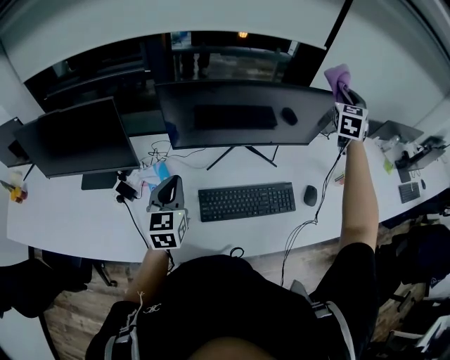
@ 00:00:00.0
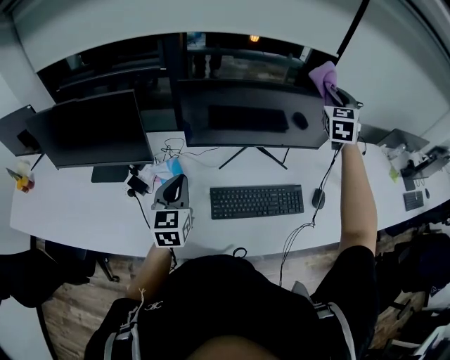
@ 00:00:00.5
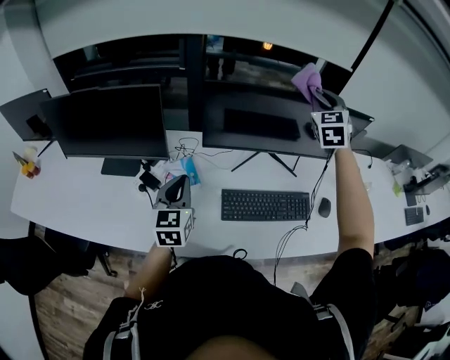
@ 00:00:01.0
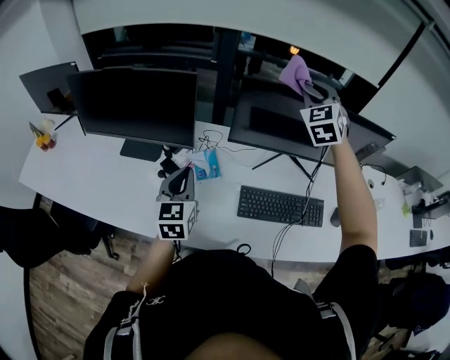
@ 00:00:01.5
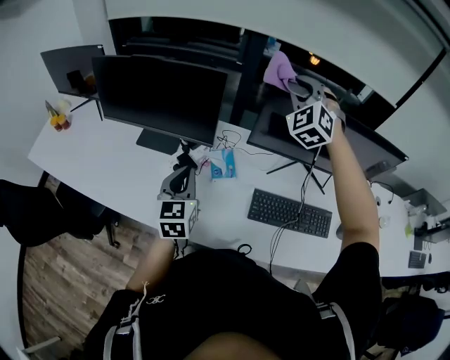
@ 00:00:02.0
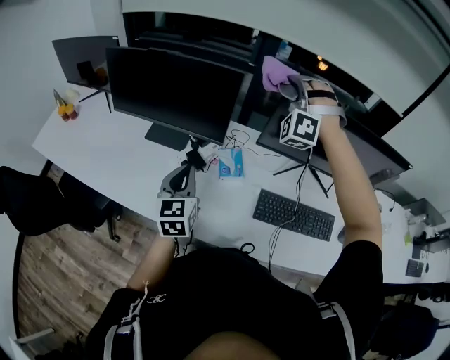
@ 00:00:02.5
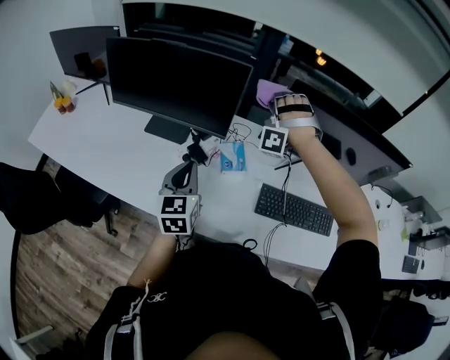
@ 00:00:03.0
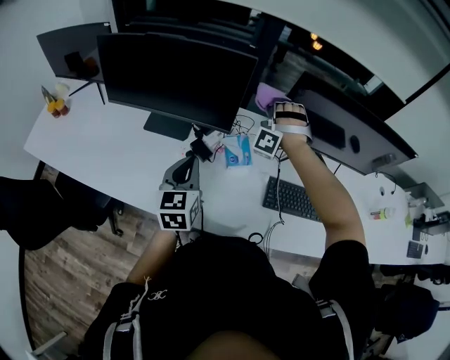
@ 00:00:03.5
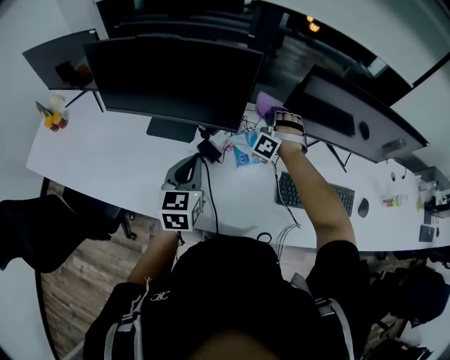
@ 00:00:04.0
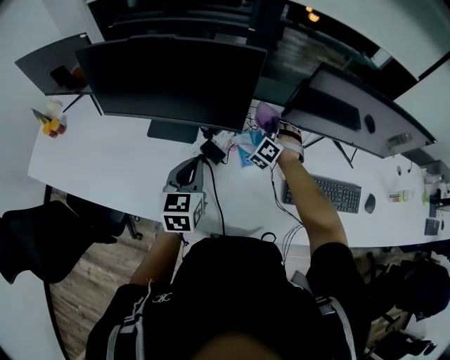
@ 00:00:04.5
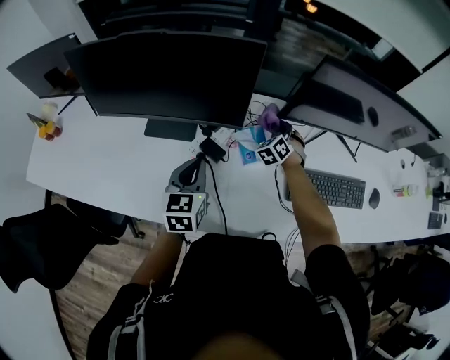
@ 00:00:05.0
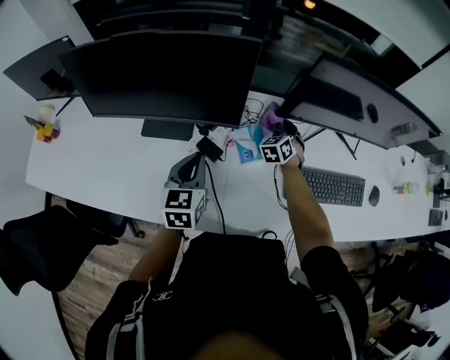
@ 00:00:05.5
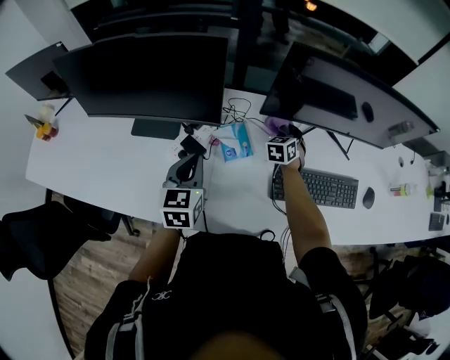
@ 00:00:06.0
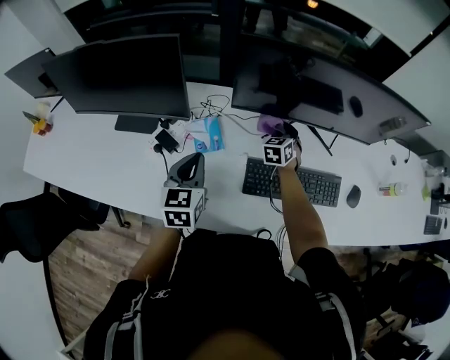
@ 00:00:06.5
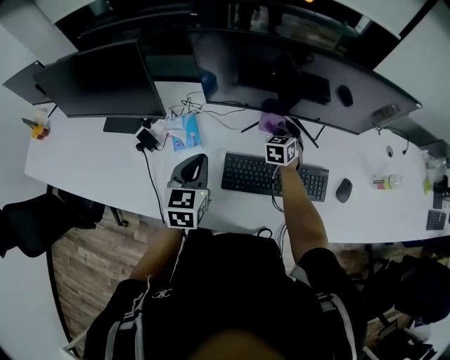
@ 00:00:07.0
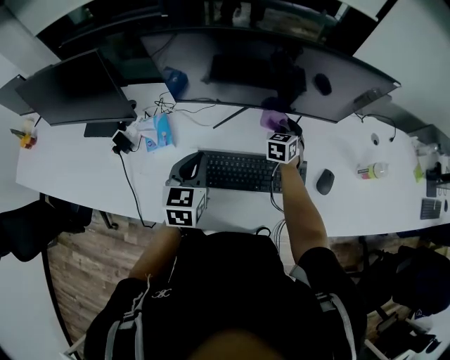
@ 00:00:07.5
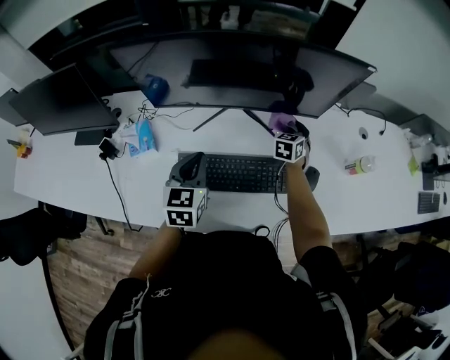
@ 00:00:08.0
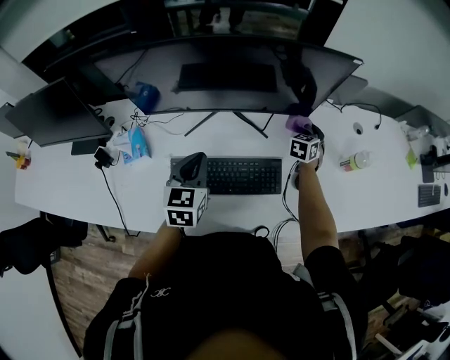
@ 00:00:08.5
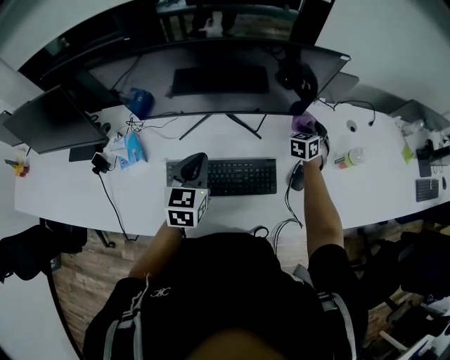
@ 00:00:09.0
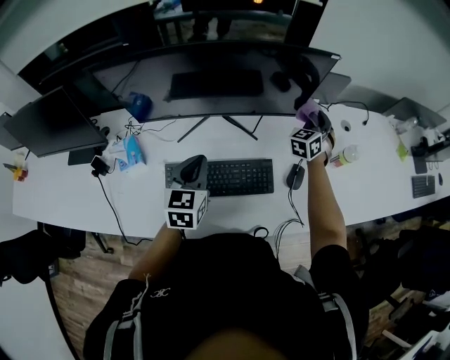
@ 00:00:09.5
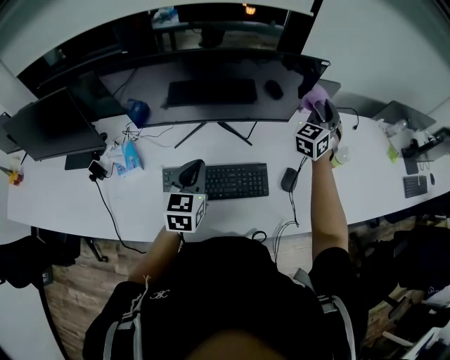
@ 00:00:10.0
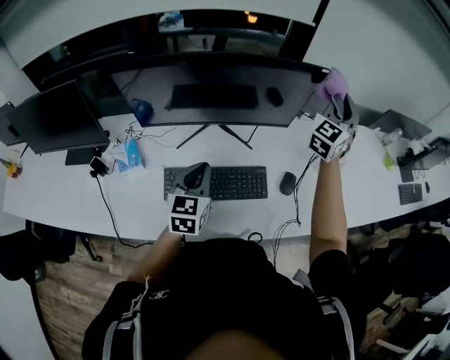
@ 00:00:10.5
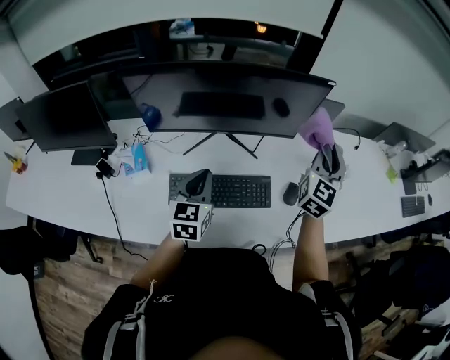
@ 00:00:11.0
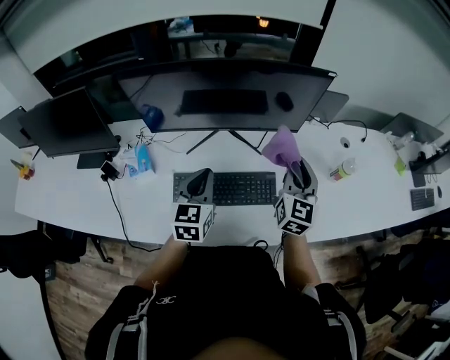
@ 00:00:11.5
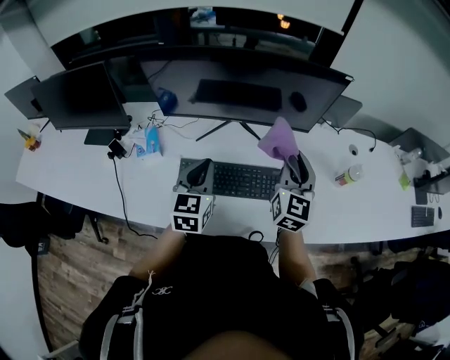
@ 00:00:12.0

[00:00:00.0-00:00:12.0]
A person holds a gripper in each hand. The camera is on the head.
00:00:00.0 to 00:00:02.0: The left gripper shifts by roughly 20 cm, while the right gripper changes place by roughly 50 cm, and changes its angle by about 60 degrees.
00:00:02.0 to 00:00:04.0: The right gripper travels downward by about 30 cm, and swivels about 40 degrees, while the left gripper goes roughly 10 cm to the left.
00:00:04.0 to 00:00:06.0: The left gripper travels to the right and forward by some 10 cm; the right gripper heads to the right and downward, covering about 20 cm, and rotates around the line of its fingers by roughly 70 degrees, clockwise from behind.
00:00:06.0 to 00:00:08.0: The two grippers travel together, to the right, about 40 cm.
00:00:08.0 to 00:00:10.0: The right gripper heads upward and to the right, covering some 30 cm, and tilts its fingers about 30 degrees upward; the left gripper heads to the right, covering approximately 5 cm.
00:00:10.0 to 00:00:12.0: The left gripper changes place by roughly 5 cm; the right gripper moves backward and to the left, roughly 25 cm, and turns by about 40 degrees.

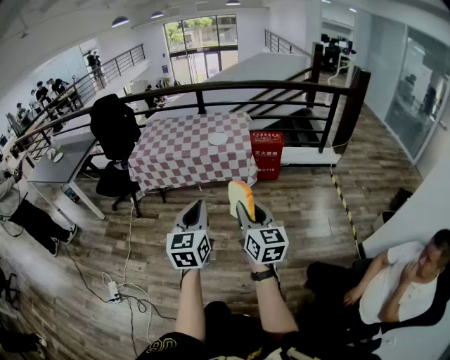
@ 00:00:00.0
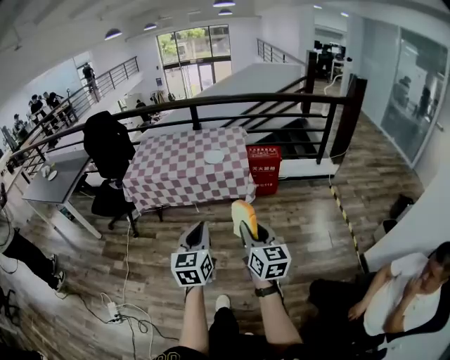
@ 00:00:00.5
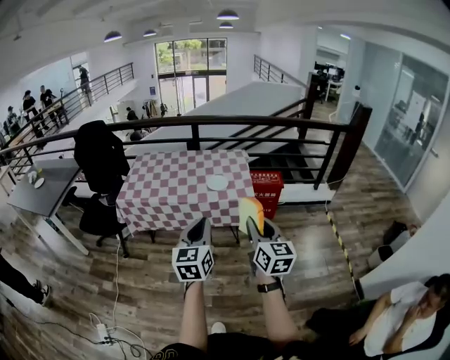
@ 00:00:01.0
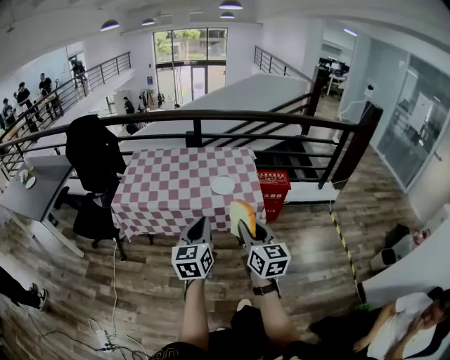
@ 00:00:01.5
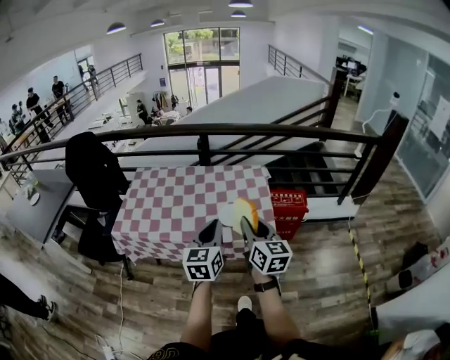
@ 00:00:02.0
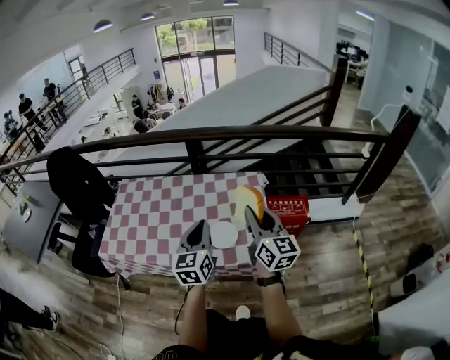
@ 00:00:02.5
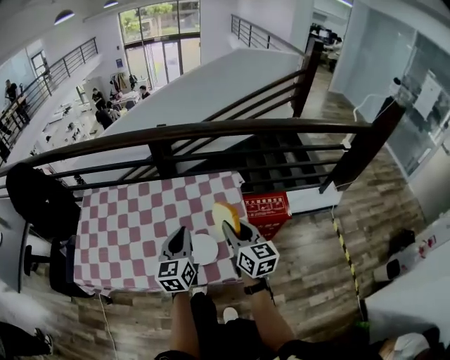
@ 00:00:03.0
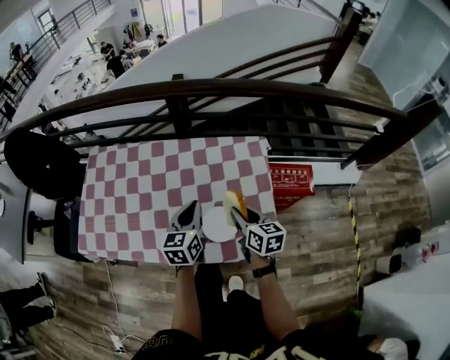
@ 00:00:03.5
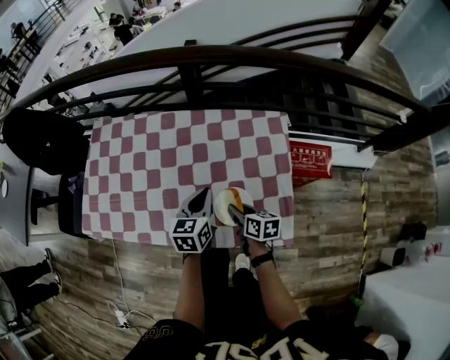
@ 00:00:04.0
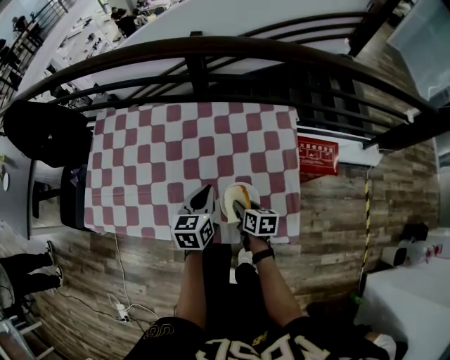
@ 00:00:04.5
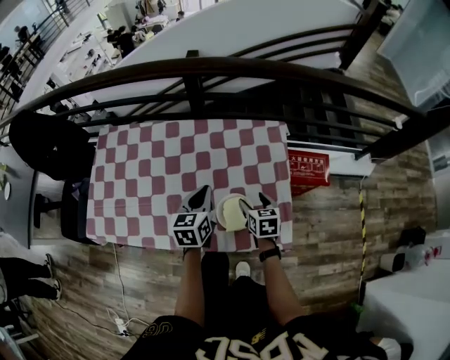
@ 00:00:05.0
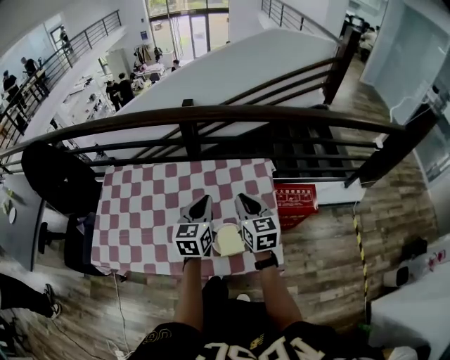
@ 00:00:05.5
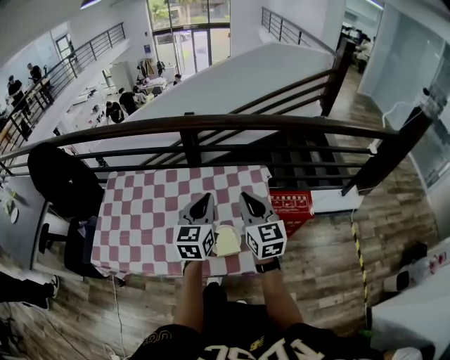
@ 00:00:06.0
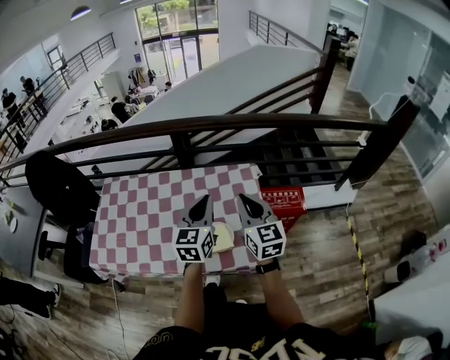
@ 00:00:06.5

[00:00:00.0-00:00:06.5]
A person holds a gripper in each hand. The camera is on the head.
00:00:00.0 to 00:00:02.0: The two grippers travel together, forward, approximately 60 cm.
00:00:02.0 to 00:00:04.5: The right gripper heads downward and forward, covering approximately 50 cm, and points its fingers about 40 degrees further downward. The left gripper shifts roughly 40 cm forward and downward, and changes its angle by roughly 30 degrees.
00:00:04.5 to 00:00:06.5: The right gripper is displaced upward by some 35 cm, points its fingers some 40 degrees further upward, and opens, then closes again. Meanwhile the left gripper shifts approximately 25 cm upward and to the right, and changes its angle by about 30 degrees.

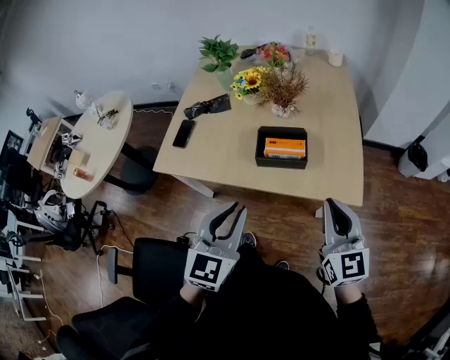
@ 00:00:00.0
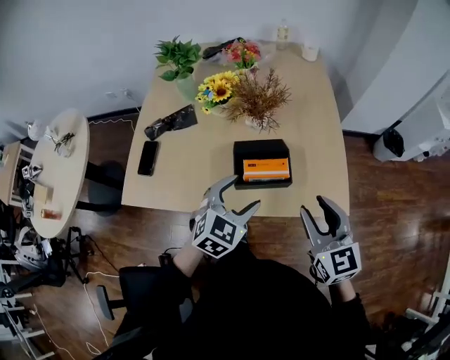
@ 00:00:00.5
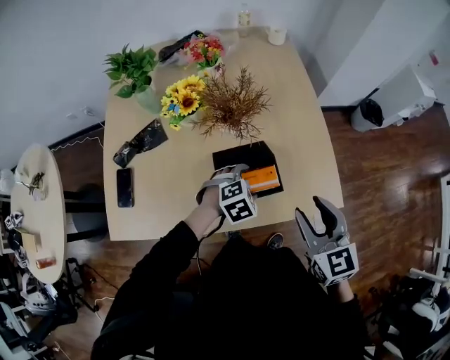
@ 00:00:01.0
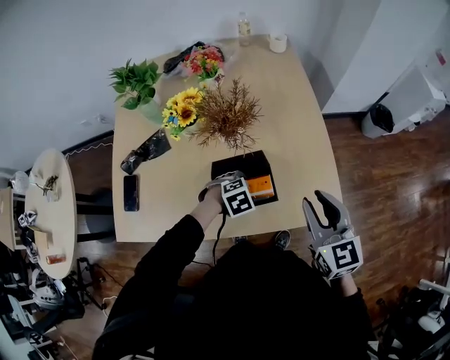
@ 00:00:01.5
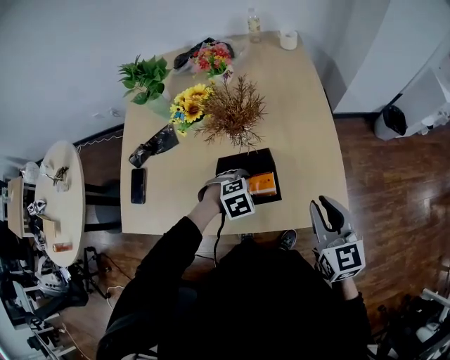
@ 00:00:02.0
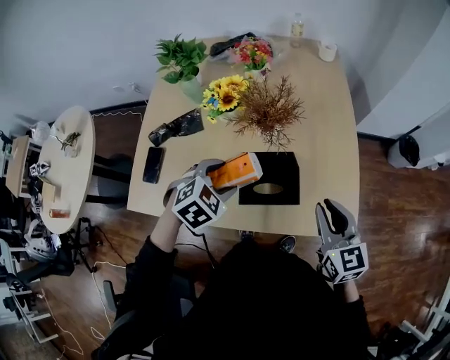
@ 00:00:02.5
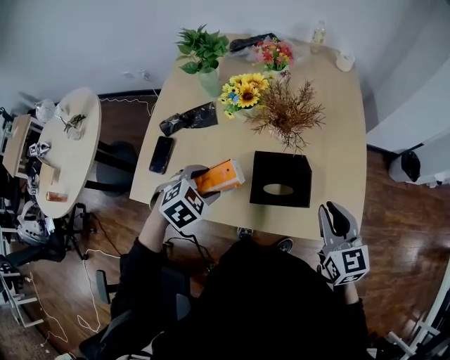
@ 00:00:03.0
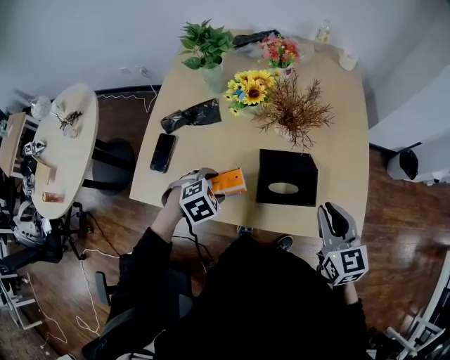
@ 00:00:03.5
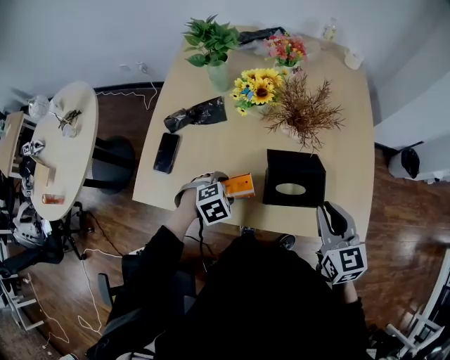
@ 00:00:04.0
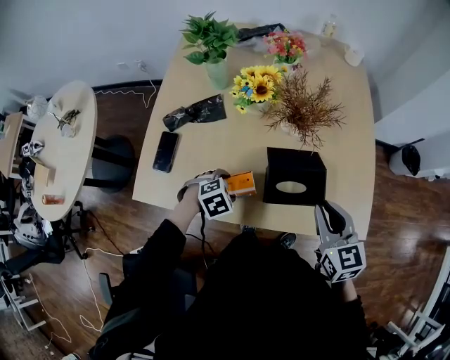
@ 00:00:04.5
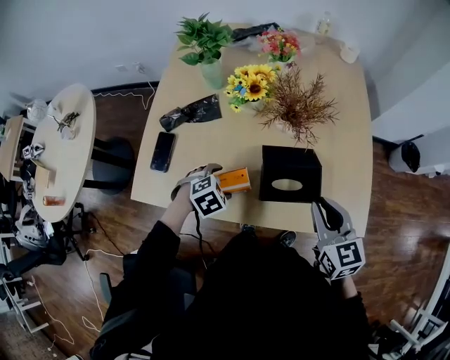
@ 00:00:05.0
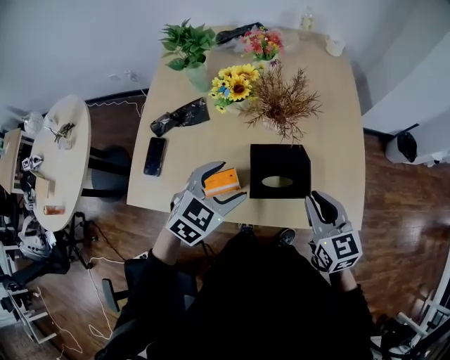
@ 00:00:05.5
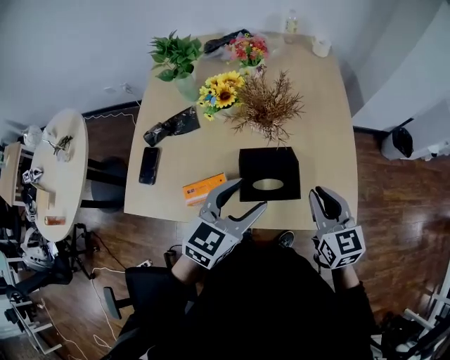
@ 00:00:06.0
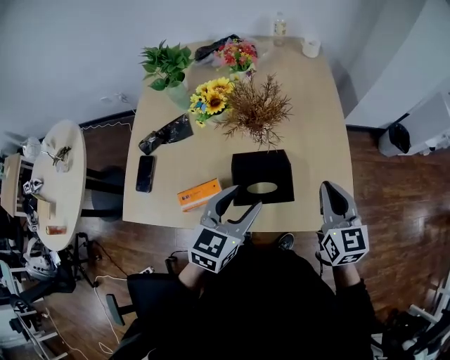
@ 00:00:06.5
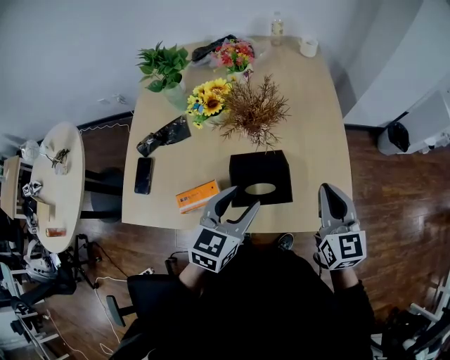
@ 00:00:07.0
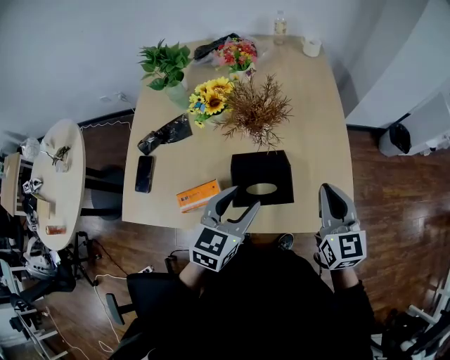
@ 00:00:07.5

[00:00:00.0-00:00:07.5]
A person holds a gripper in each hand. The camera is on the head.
00:00:00.0 to 00:00:02.0: The right gripper moves some 20 cm, and opens and closes again. The left gripper moves approximately 40 cm, tilts its fingers about 60 degrees downward, and opens up.
00:00:02.0 to 00:00:04.0: The left gripper travels to the left by about 20 cm; the right gripper moves to the left, approximately 15 cm.
00:00:04.0 to 00:00:05.5: The left gripper heads upward, covering roughly 15 cm, and angles its fingers upward, by roughly 30 degrees.
00:00:05.5 to 00:00:07.5: The grippers both shift to the right by roughly 10 cm. The left gripper rotates roughly 20 degrees, and closes up.
